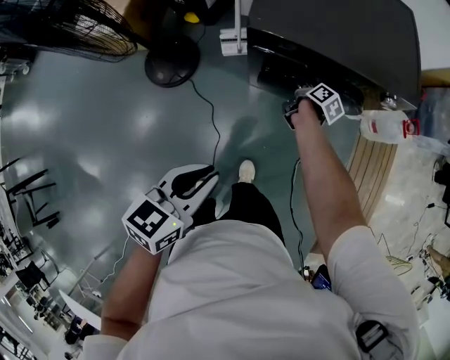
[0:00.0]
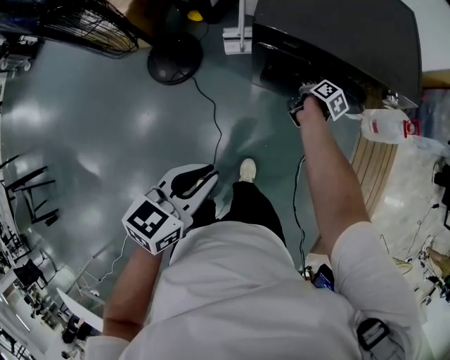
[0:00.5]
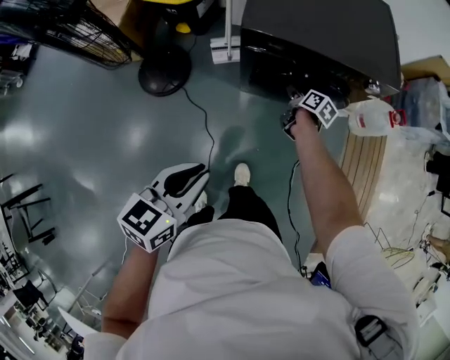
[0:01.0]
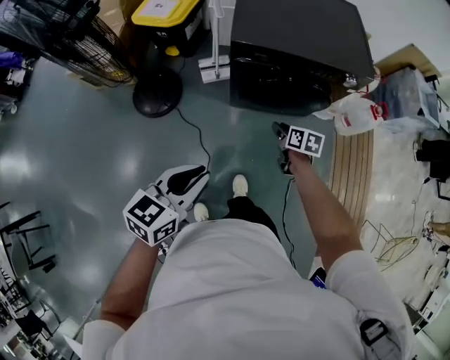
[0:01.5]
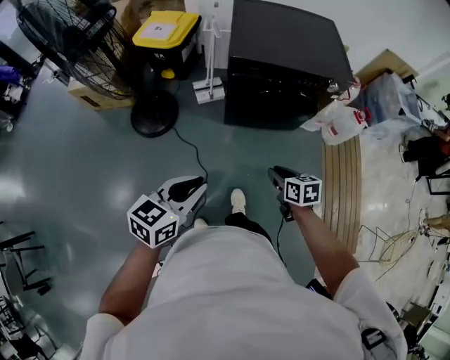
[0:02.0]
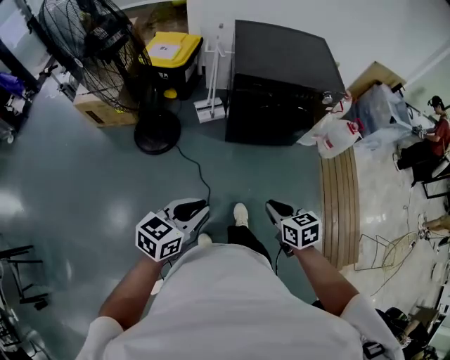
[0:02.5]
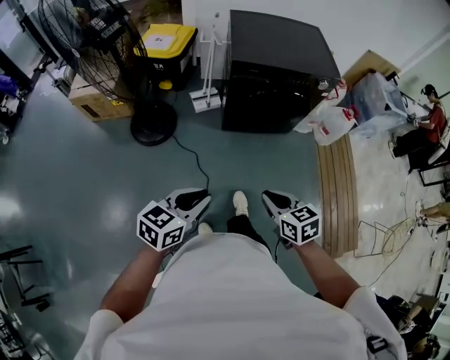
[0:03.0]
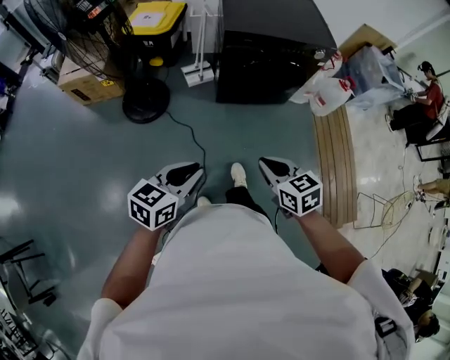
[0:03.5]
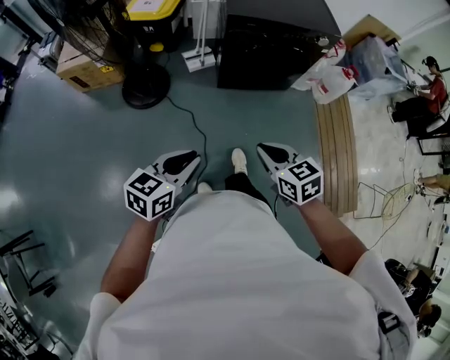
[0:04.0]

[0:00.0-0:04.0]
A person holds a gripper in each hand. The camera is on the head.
0:00.0 to 0:02.0: The right gripper goes approximately 40 cm backward, and rotates around the line of its fingers by some 50 degrees, counterclockwise from behind. The left gripper heads backward and to the left, covering approximately 15 cm.
0:02.0 to 0:04.0: The left gripper moves backward and to the left, about 15 cm. Meanwhile the right gripper shifts about 25 cm backward, upward and to the left, changes its angle by approximately 20 degrees, and closes its fingers.

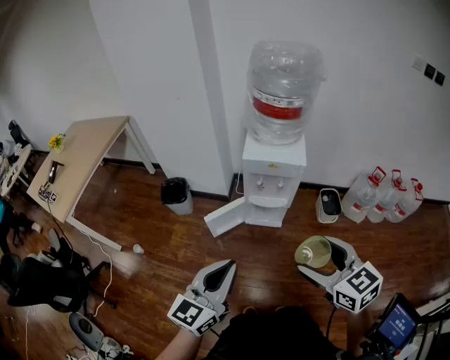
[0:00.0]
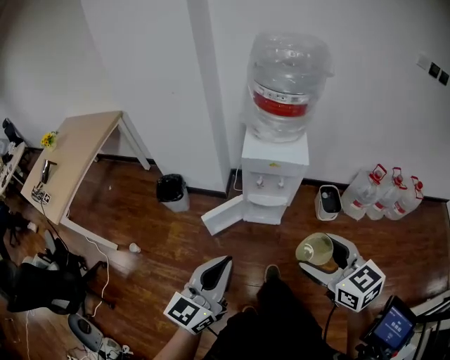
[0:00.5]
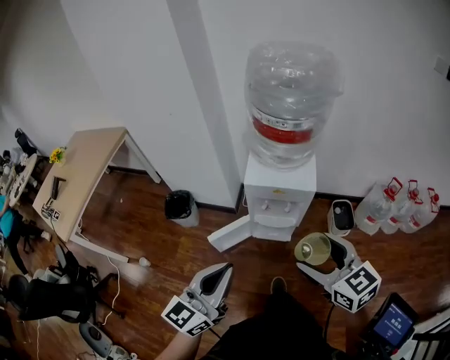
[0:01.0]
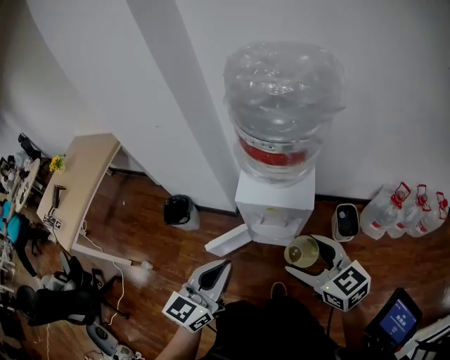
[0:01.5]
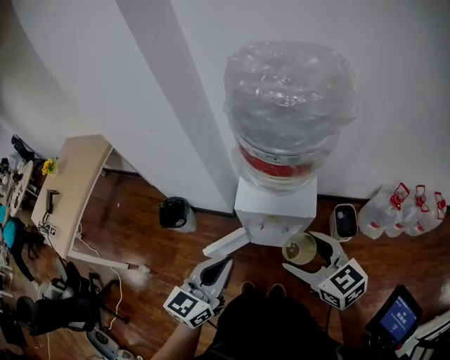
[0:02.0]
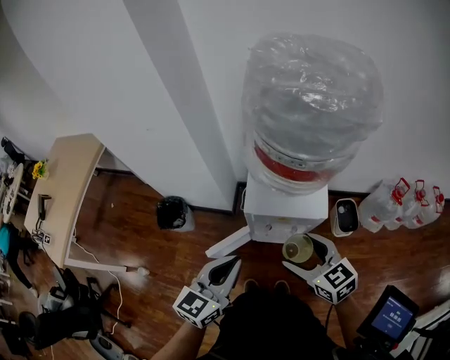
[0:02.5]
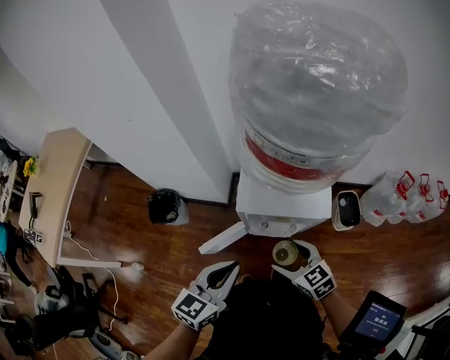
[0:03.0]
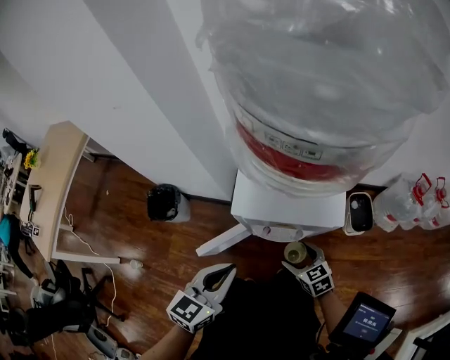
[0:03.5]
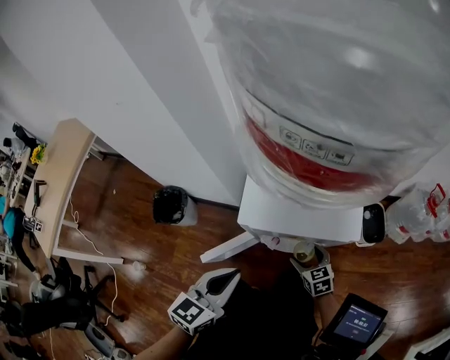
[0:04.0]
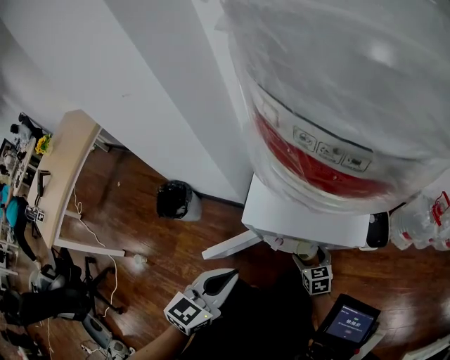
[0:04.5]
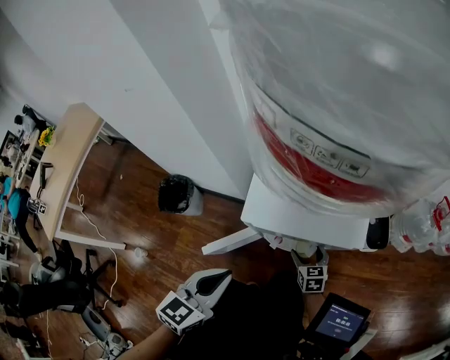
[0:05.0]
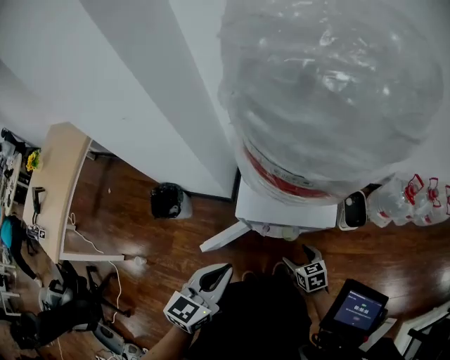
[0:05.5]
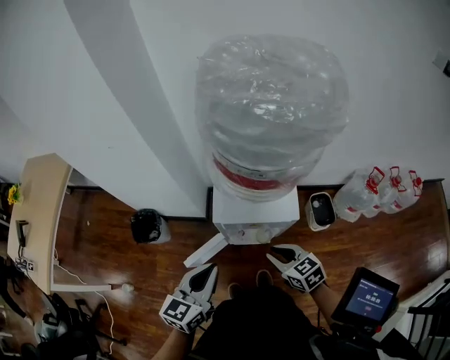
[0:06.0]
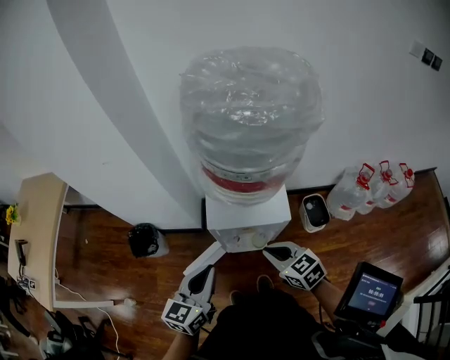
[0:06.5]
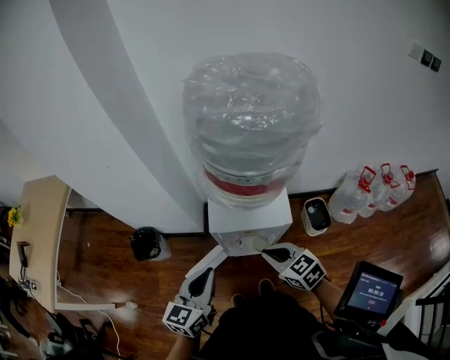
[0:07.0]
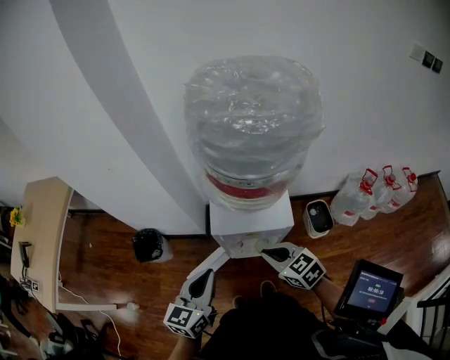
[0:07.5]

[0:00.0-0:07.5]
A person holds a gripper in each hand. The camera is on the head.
0:00.0 to 0:02.0: The two grippers go approximately 30 cm forward.
0:02.0 to 0:04.0: The left gripper heads downward, covering about 25 cm; the right gripper heads downward, covering some 50 cm, and turns by about 20 degrees.
0:04.0 to 0:05.5: The left gripper moves upward, about 10 cm. Meanwhile the right gripper heads upward and backward, covering approximately 10 cm.
0:05.5 to 0:07.5: The left gripper is displaced upward by approximately 5 cm, while the right gripper goes about 25 cm upward, rotates some 20 degrees, and closes its fingers.
